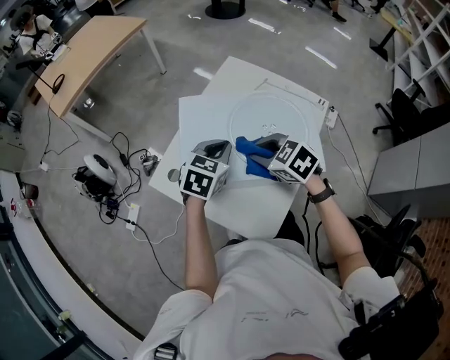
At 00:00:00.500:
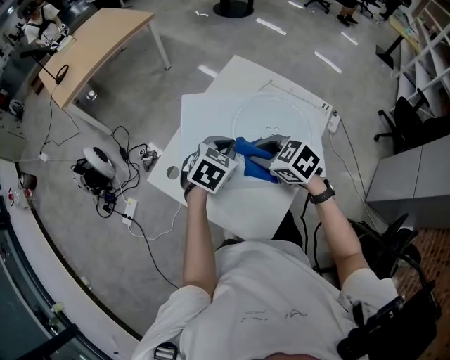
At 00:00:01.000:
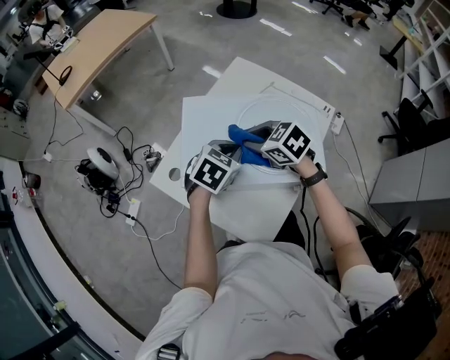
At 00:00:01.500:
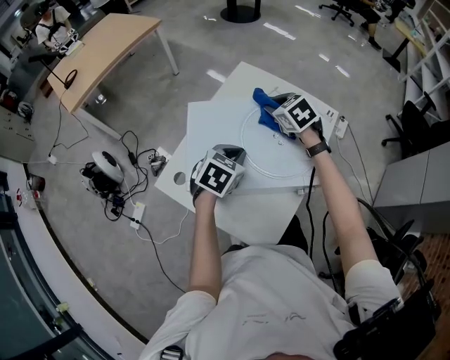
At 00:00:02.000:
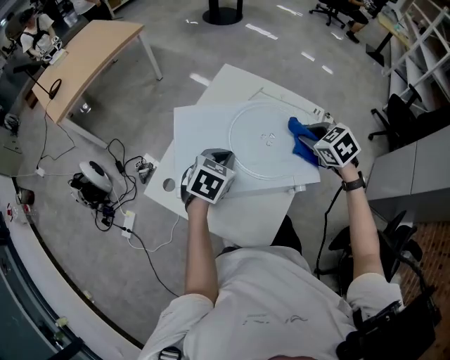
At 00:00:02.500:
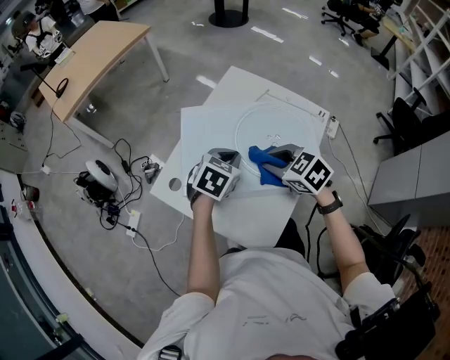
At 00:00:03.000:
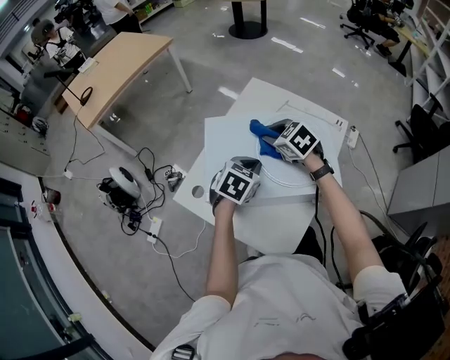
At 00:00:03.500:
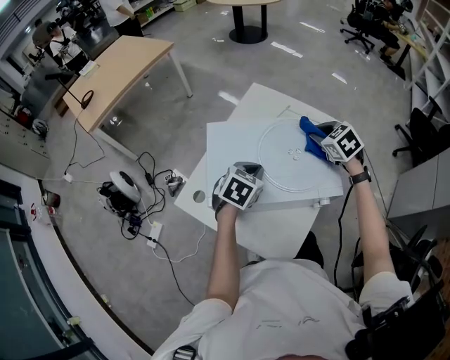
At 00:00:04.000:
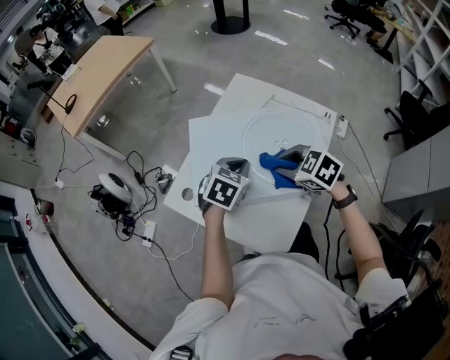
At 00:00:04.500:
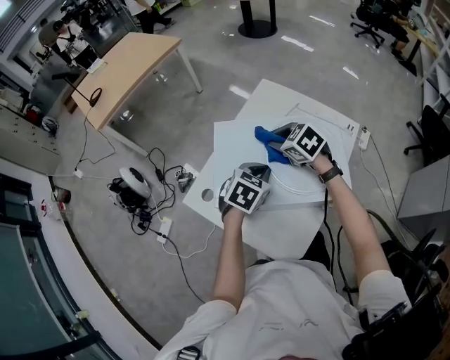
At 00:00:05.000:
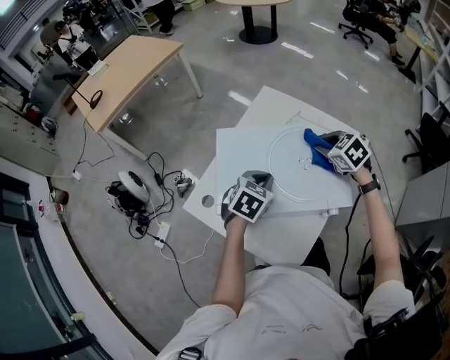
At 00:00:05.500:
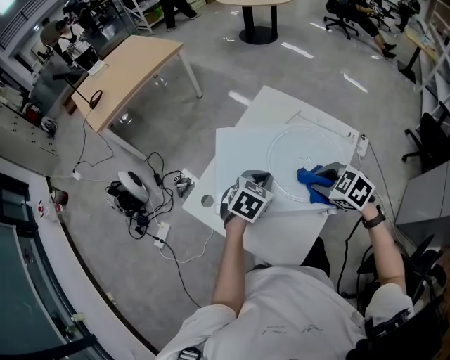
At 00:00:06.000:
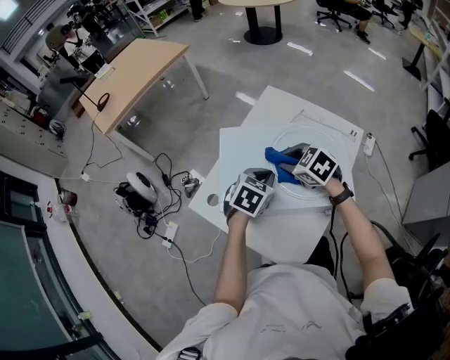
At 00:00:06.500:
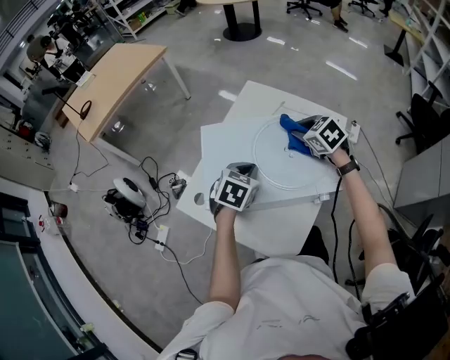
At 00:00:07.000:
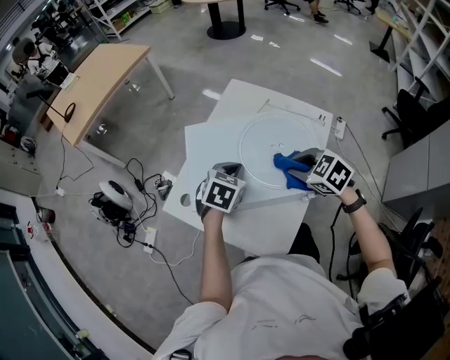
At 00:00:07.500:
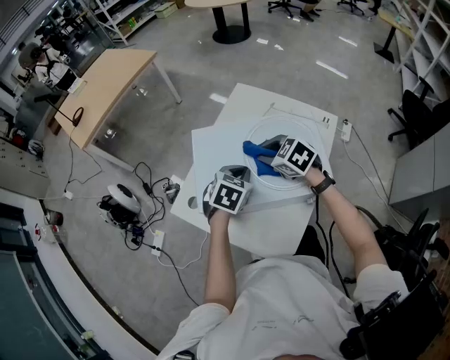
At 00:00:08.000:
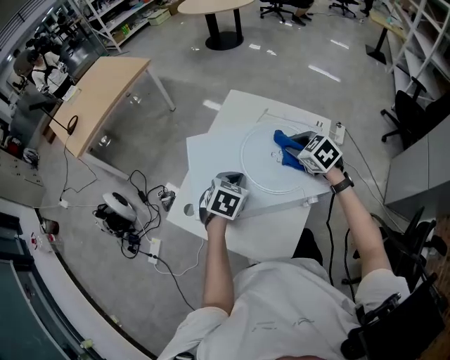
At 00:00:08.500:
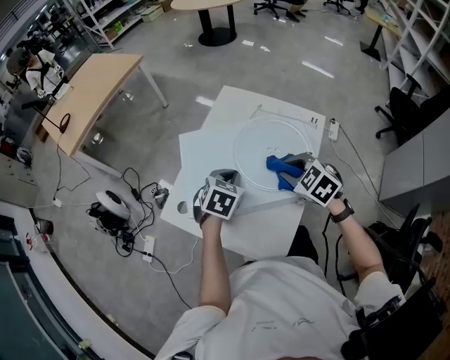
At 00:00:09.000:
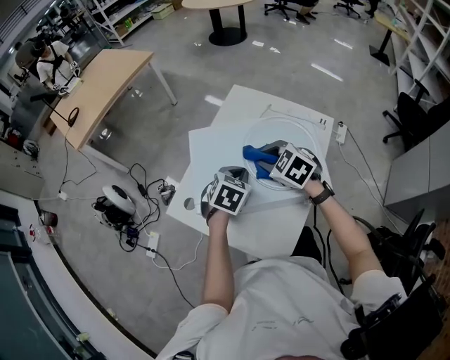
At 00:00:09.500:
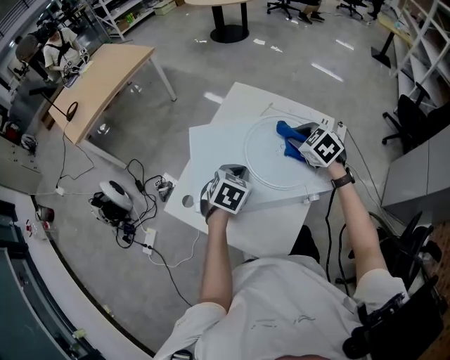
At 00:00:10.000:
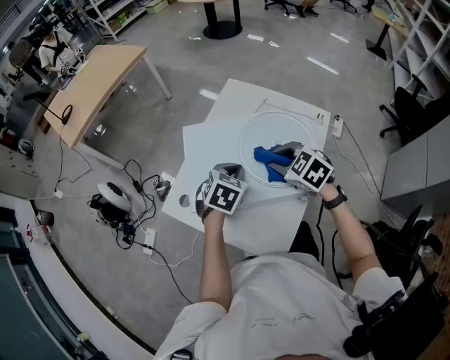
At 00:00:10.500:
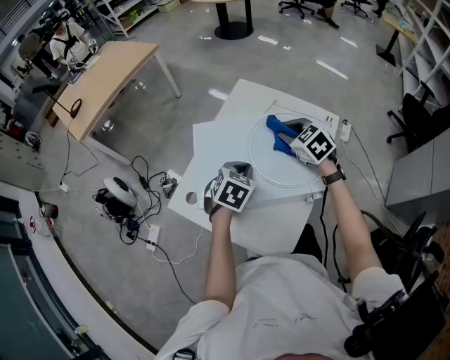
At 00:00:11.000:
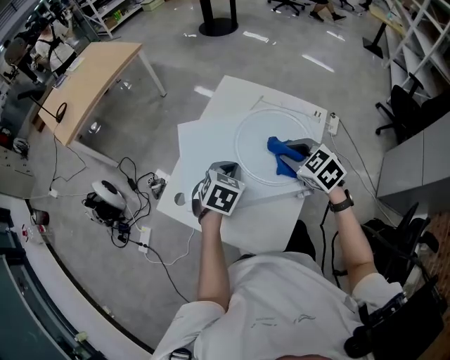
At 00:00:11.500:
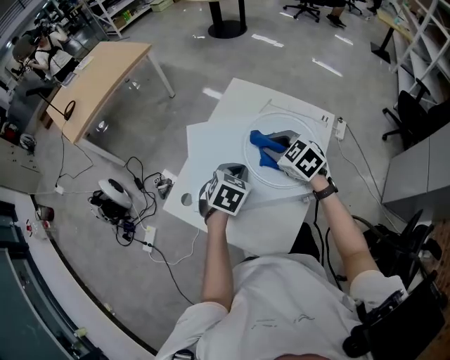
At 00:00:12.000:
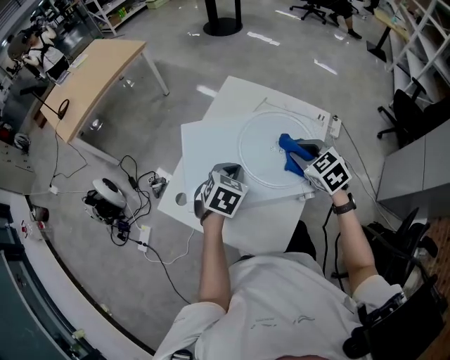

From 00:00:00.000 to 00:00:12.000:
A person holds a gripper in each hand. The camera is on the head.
From 00:00:00.000 to 00:00:02.000: The right gripper moves to the right, some 20 cm.
From 00:00:02.000 to 00:00:04.000: The right gripper swings left and right, some 20 cm each way, with 2 reversals, and swivels about 20 degrees.
From 00:00:04.000 to 00:00:06.000: The right gripper moves left and right over roughly 15 cm, changing direction 2 times.
From 00:00:06.000 to 00:00:08.000: The right gripper moves left and right over approximately 15 cm, changing direction 2 times.
From 00:00:08.000 to 00:00:10.000: The right gripper moves left and right over approximately 10 cm, changing direction 2 times.
From 00:00:10.000 to 00:00:12.000: The right gripper moves left and right over about 10 cm, changing direction 2 times.

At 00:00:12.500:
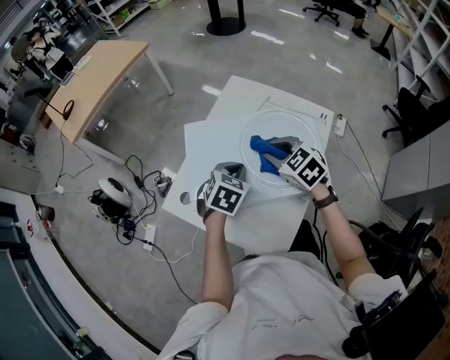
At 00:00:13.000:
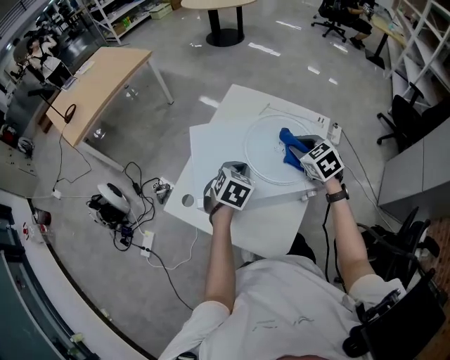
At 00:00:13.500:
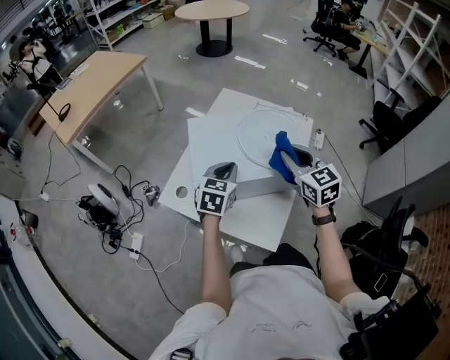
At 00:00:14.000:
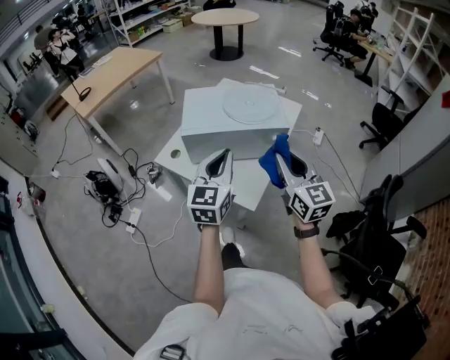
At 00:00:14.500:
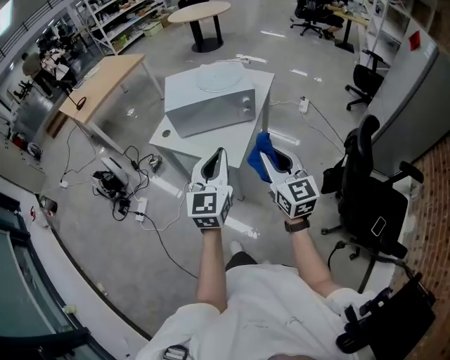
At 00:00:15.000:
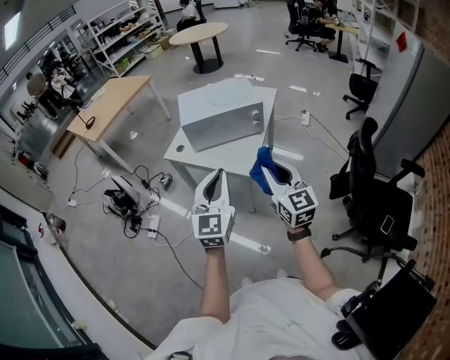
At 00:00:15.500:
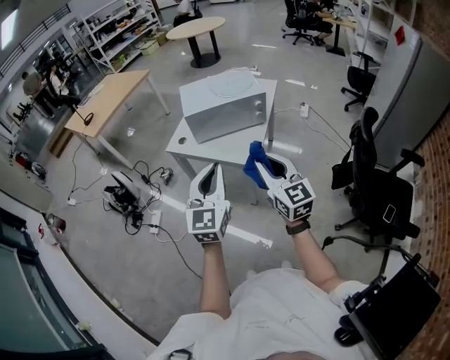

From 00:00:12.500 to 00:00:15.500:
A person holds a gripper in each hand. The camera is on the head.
From 00:00:12.500 to 00:00:14.000: The grippers both shift backward and upward by some 35 cm. The right gripper tips its fingers upward by about 40 degrees, while the left gripper angles its fingers upward, by some 40 degrees.
From 00:00:14.000 to 00:00:15.500: The grippers both shift backward by about 25 cm.
